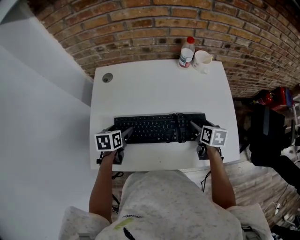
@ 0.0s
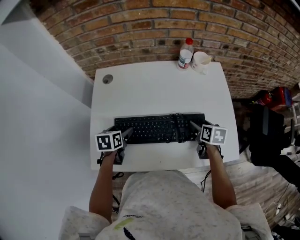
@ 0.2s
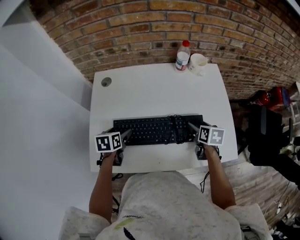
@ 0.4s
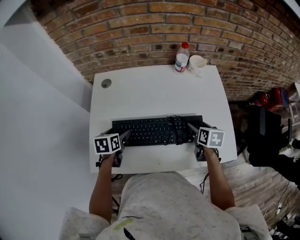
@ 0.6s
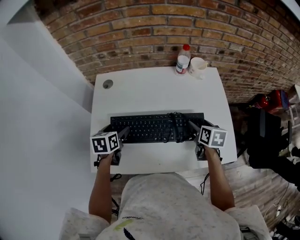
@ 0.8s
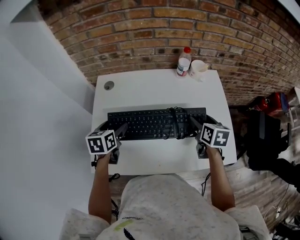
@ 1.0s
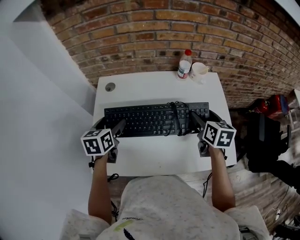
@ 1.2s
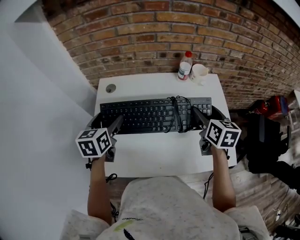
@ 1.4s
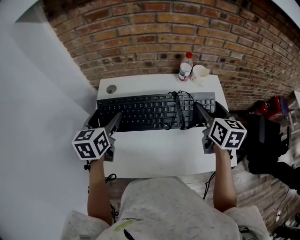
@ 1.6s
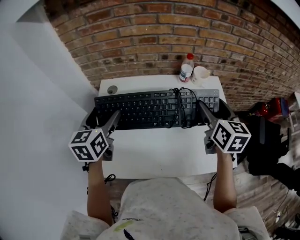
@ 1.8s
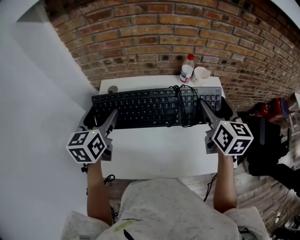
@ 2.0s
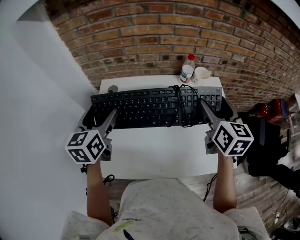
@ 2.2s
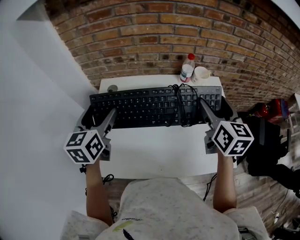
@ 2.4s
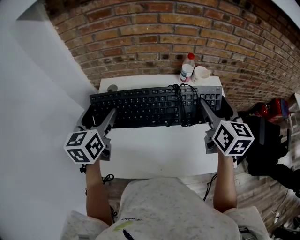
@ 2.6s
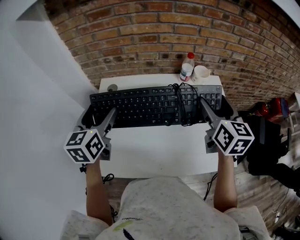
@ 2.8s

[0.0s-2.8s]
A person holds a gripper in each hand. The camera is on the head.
0.0s to 1.4s: The two grippers go some 20 cm upward. The right gripper turns by roughly 20 degrees; the left gripper changes its angle by roughly 30 degrees.
1.4s to 2.8s: Both grippers move upward, about 10 cm.

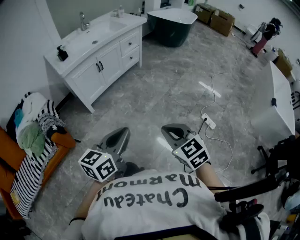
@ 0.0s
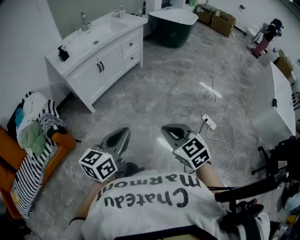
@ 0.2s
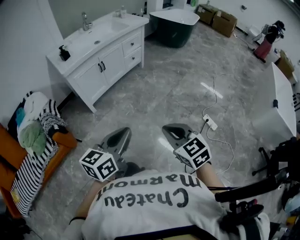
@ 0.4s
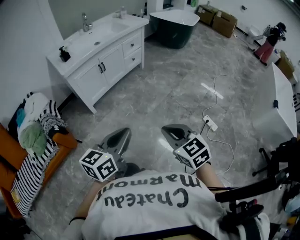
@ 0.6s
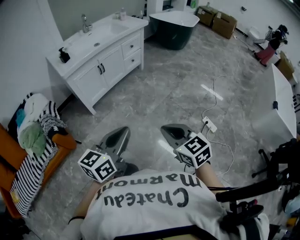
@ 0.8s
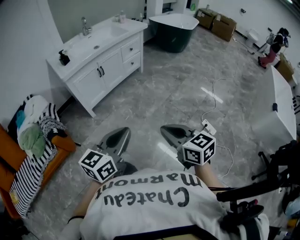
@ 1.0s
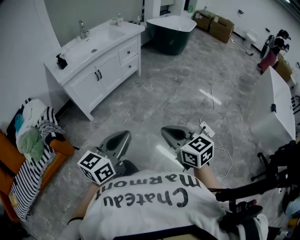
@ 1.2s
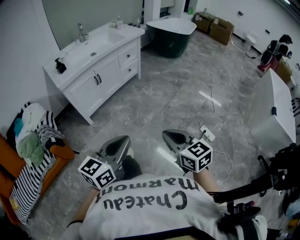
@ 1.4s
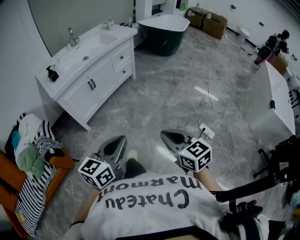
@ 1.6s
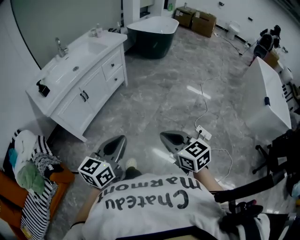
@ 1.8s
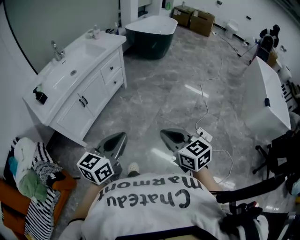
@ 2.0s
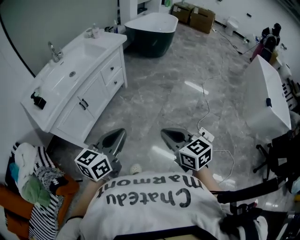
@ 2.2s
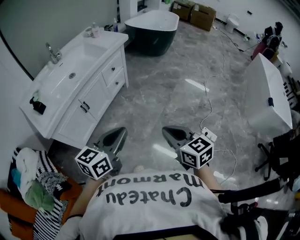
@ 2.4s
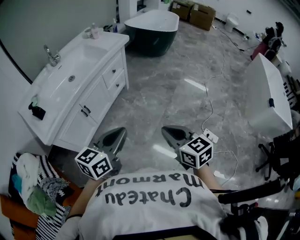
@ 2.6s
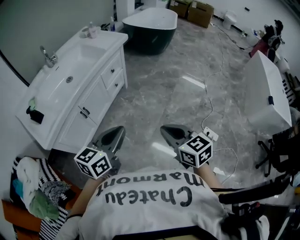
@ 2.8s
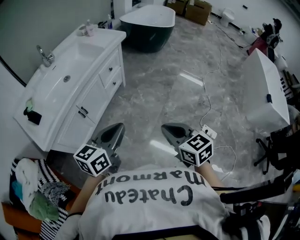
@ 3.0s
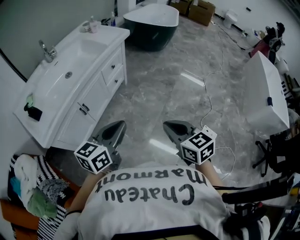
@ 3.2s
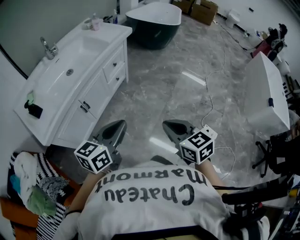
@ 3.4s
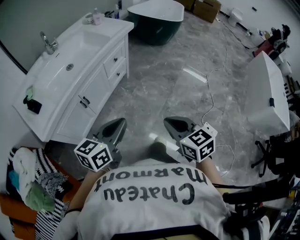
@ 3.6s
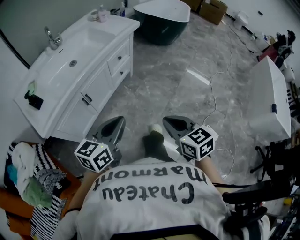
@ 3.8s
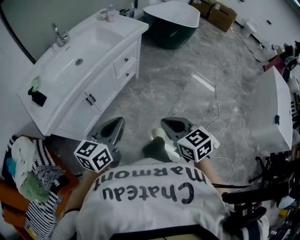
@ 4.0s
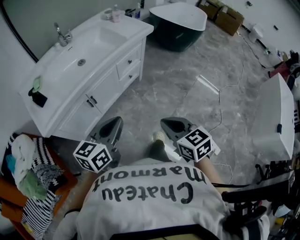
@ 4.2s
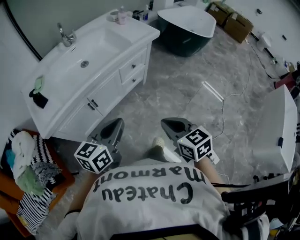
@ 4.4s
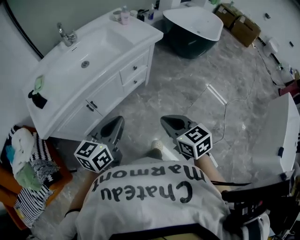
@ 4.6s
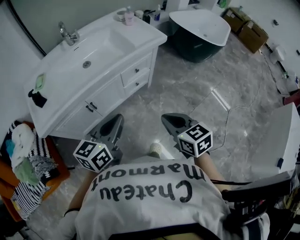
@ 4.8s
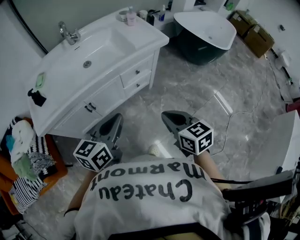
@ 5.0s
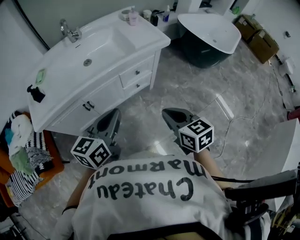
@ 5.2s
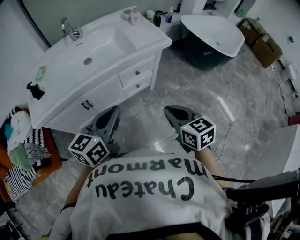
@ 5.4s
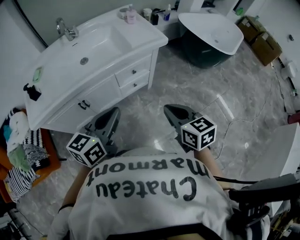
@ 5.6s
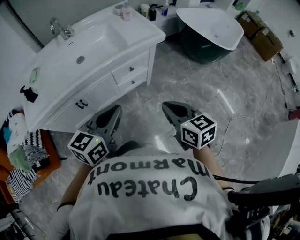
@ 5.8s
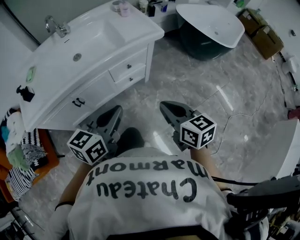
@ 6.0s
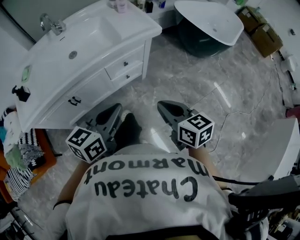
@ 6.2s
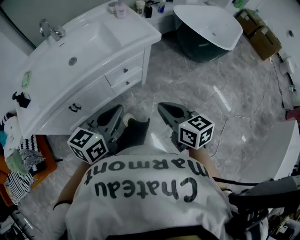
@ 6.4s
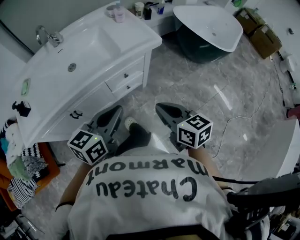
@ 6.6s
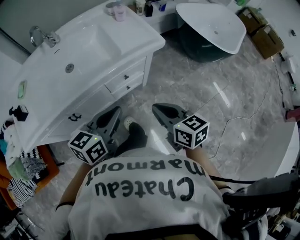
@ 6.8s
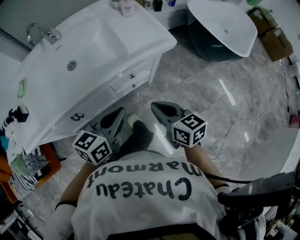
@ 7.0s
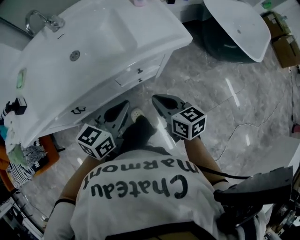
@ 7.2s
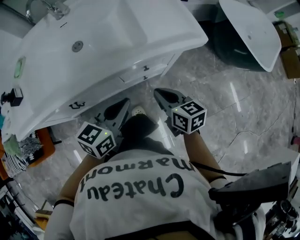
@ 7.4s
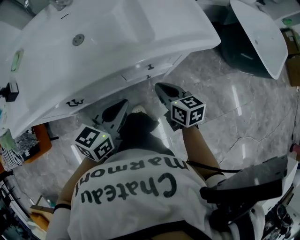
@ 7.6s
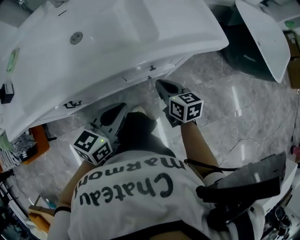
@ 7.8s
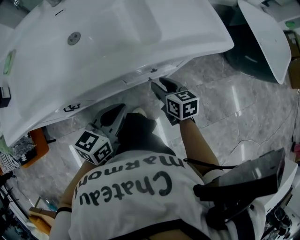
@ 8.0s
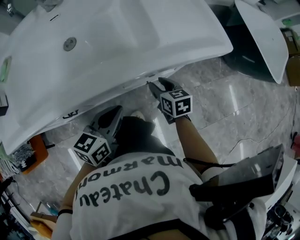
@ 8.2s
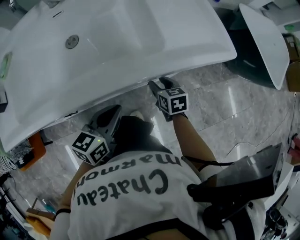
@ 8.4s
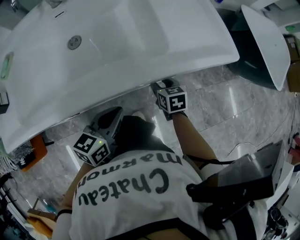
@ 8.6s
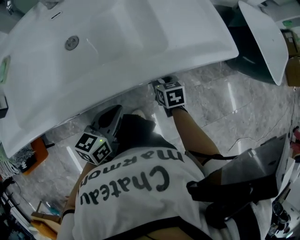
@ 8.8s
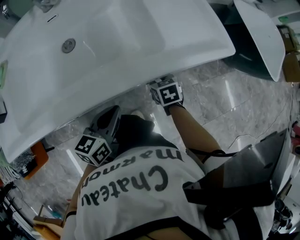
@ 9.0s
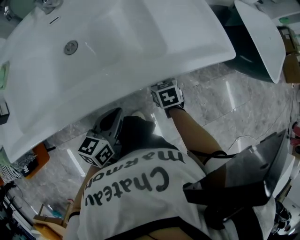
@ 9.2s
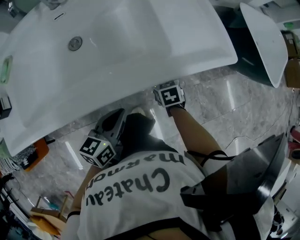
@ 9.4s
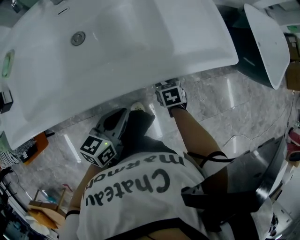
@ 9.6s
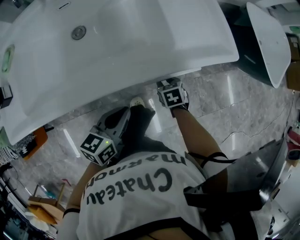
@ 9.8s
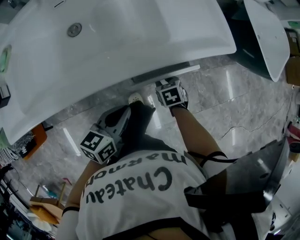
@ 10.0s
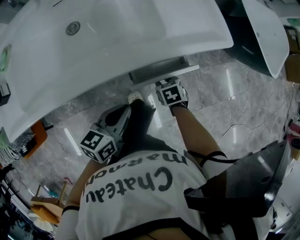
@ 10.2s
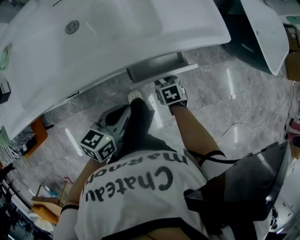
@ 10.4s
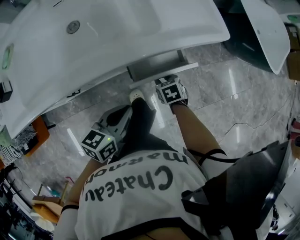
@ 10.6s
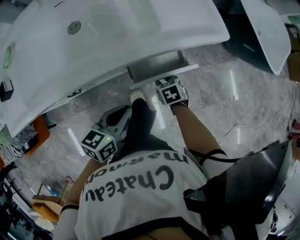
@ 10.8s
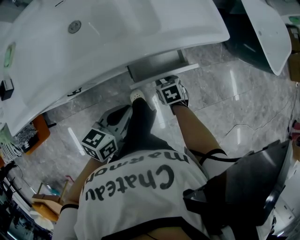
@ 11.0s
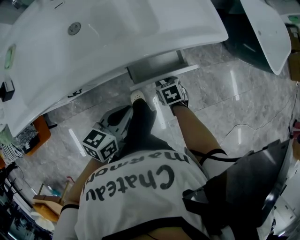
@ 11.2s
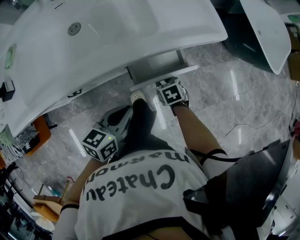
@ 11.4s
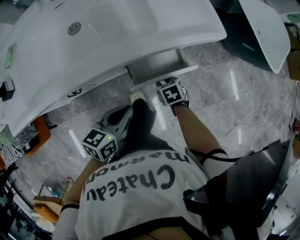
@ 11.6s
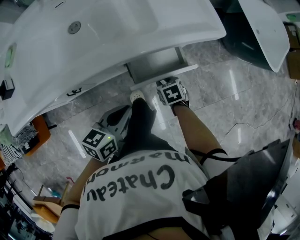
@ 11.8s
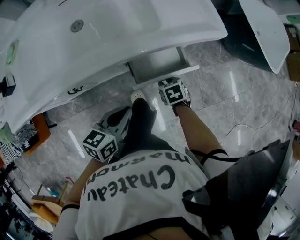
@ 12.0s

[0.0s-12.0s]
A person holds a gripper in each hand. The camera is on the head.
0.0s to 1.6s: The two grippers go roughly 10 cm forward.
1.6s to 3.0s: The grippers both shift forward by approximately 30 cm.
3.0s to 4.4s: The grippers both shift forward by approximately 15 cm. The left gripper changes its angle by some 20 degrees.
4.4s to 6.0s: The right gripper shifts about 25 cm forward and to the right, while the left gripper heads to the right and forward, covering about 20 cm.
6.0s to 7.6s: Both grippers travel together forward and downward, approximately 30 cm.
7.6s to 9.0s: The right gripper travels downward and forward by some 15 cm, changes its angle by some 30 degrees, and opens up; the left gripper heads downward and to the left, covering some 10 cm.
9.0s to 10.4s: The left gripper travels backward and to the right by approximately 10 cm, while the right gripper travels backward by about 10 cm.
10.4s to 12.0s: There are only small adjustments of the grippers.

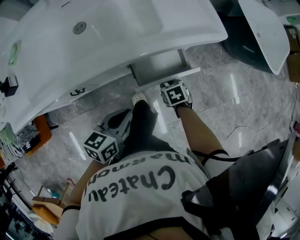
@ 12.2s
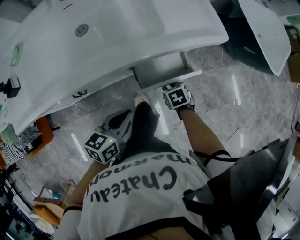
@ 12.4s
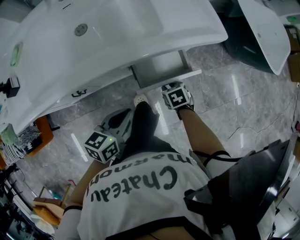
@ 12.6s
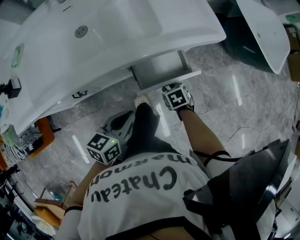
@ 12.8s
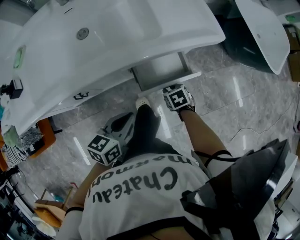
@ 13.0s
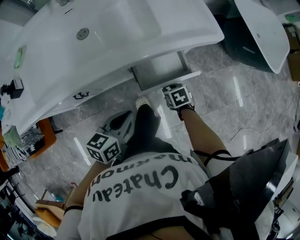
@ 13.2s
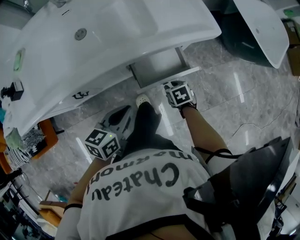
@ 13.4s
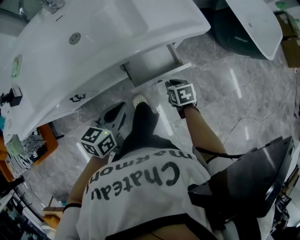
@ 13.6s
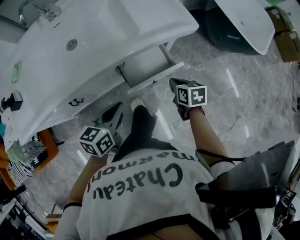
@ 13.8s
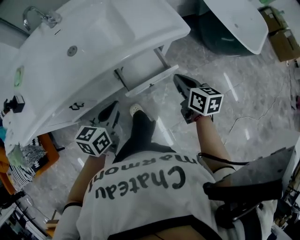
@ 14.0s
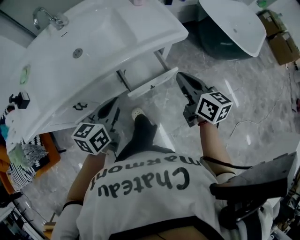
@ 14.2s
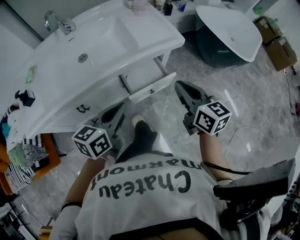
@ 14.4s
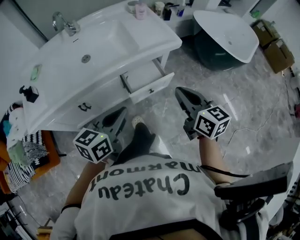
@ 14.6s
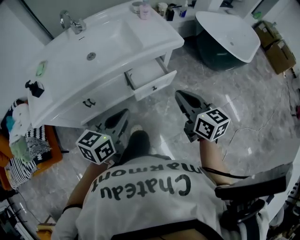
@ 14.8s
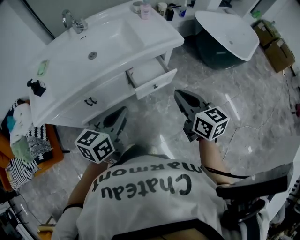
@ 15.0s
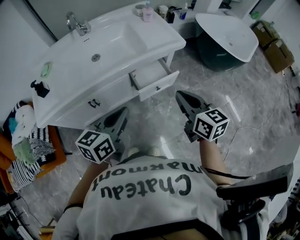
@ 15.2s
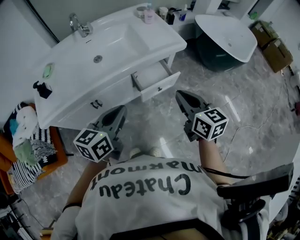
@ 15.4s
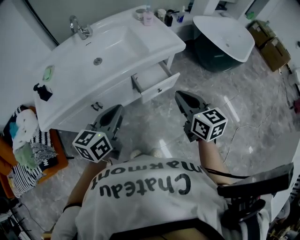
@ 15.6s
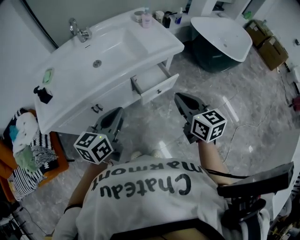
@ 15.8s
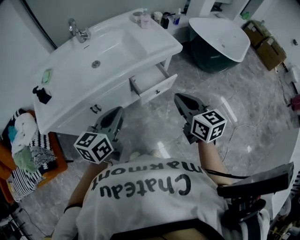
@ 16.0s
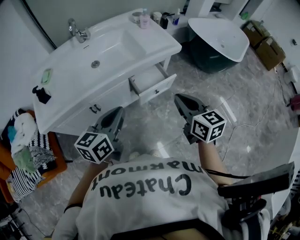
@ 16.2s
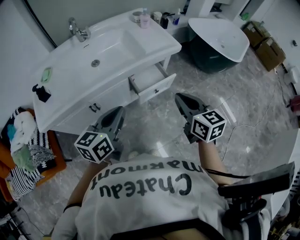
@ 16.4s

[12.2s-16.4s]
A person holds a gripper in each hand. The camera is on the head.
12.2s to 13.6s: The right gripper ends up approximately 5 cm from where it was.
13.6s to 15.0s: The left gripper moves upward and backward, approximately 20 cm, while the right gripper moves upward and backward, roughly 40 cm, and points its fingers roughly 40 degrees further upward.
15.0s to 16.4s: The left gripper changes place by about 5 cm, while the right gripper ends up about 5 cm from where it was.

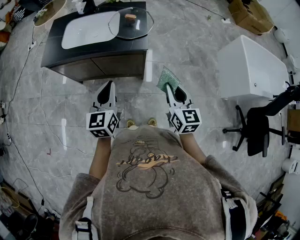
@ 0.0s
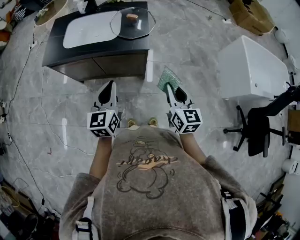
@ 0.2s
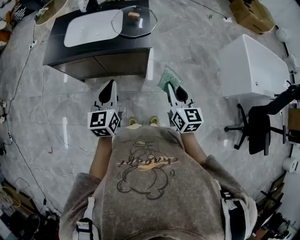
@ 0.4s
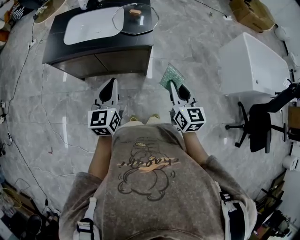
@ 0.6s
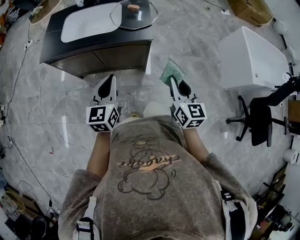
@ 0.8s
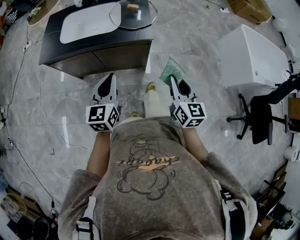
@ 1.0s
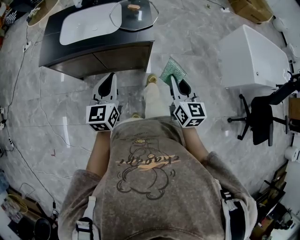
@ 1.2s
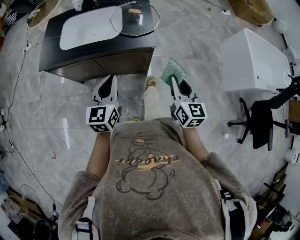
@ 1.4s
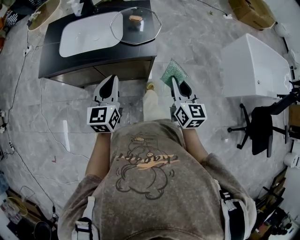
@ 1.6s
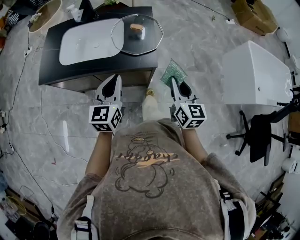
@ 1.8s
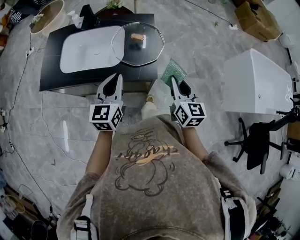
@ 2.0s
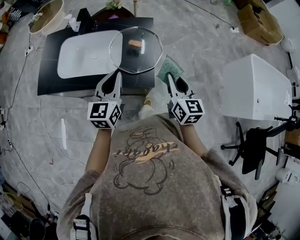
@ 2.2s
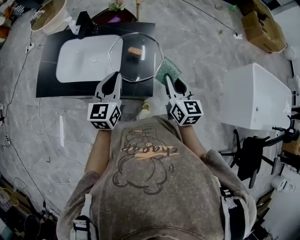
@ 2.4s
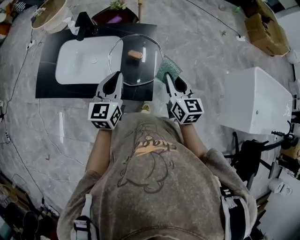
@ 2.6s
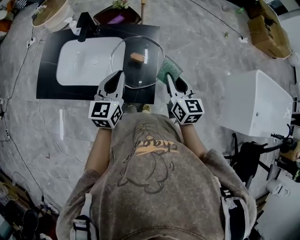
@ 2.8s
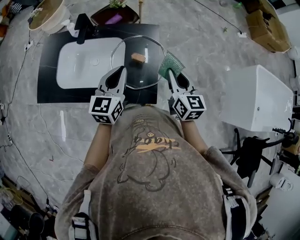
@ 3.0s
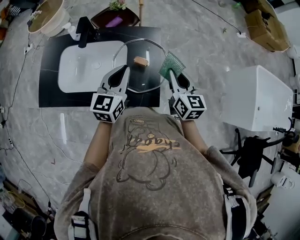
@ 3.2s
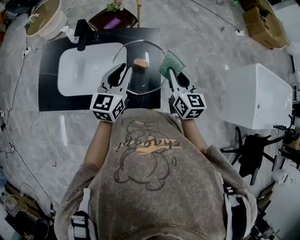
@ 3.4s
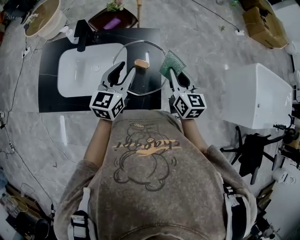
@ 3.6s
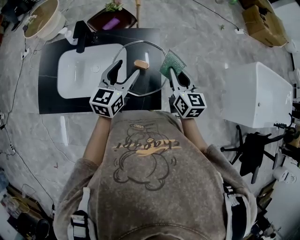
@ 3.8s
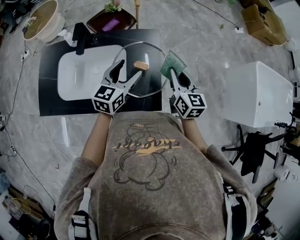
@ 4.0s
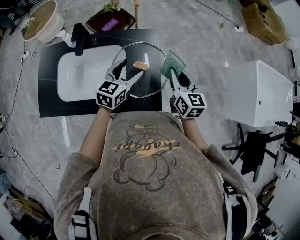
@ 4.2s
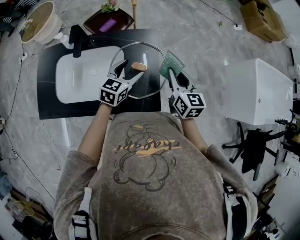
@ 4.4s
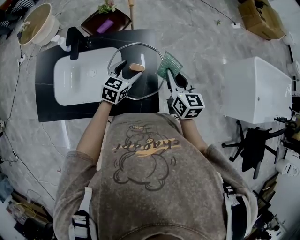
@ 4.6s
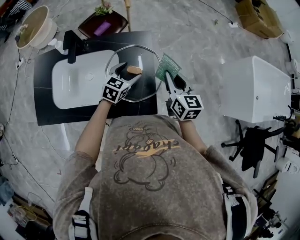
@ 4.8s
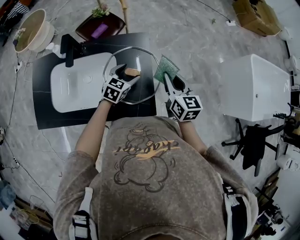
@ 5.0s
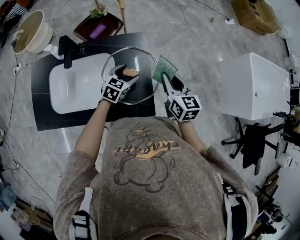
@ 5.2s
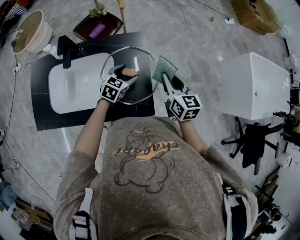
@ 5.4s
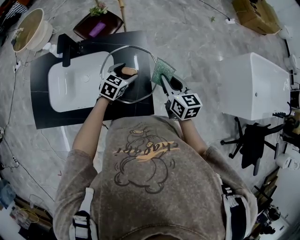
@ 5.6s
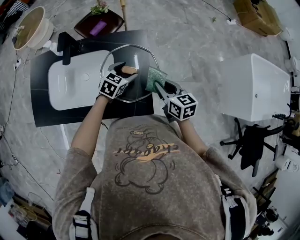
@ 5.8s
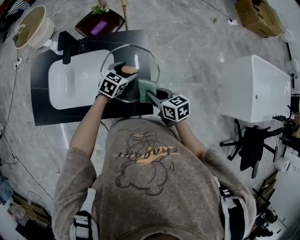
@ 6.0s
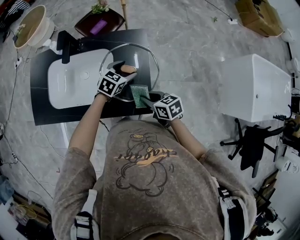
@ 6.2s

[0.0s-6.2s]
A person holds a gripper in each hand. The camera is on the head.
0.0s to 1.6s: Both grippers move forward, roughly 10 cm.
1.6s to 3.2s: Both grippers travel together forward, roughly 35 cm.
3.2s to 4.6s: The left gripper moves downward and forward, approximately 15 cm, changes its angle by about 30 degrees, and opens.
4.6s to 6.2s: The left gripper goes approximately 5 cm downward; the right gripper travels downward, backward and to the left by some 20 cm, and turns by some 40 degrees.
